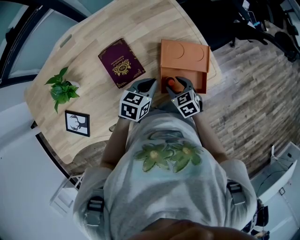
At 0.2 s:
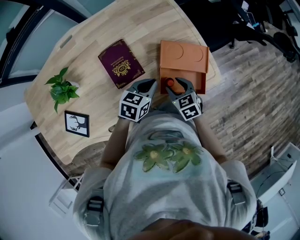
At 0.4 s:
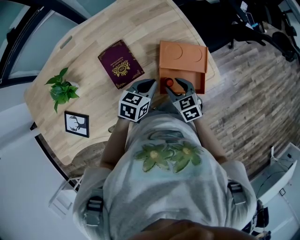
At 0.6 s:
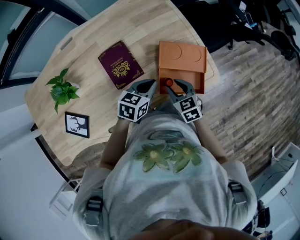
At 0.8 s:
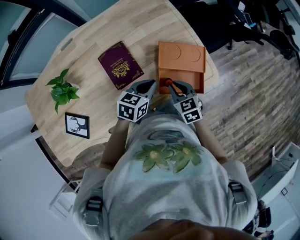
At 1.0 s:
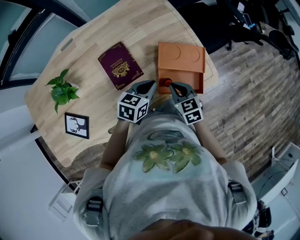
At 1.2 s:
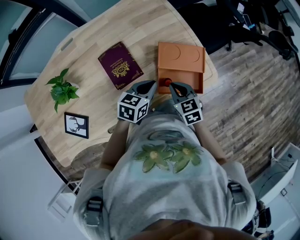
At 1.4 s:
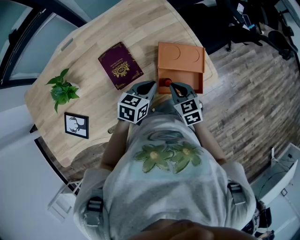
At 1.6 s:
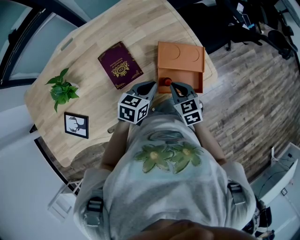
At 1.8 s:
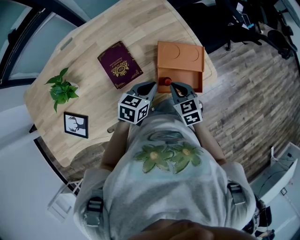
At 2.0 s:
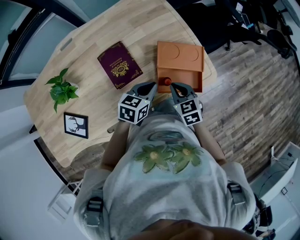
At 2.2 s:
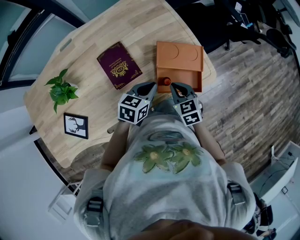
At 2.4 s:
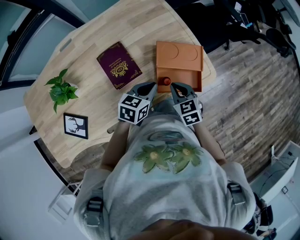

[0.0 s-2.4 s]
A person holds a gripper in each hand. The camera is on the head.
0.0 to 1.2 s: The right gripper is displaced upward by about 5 cm, and closes its fingers.
1.2 to 2.4 s: Neither gripper changes place.

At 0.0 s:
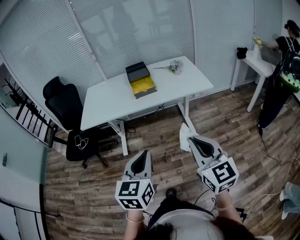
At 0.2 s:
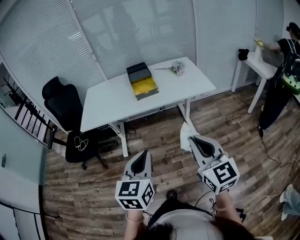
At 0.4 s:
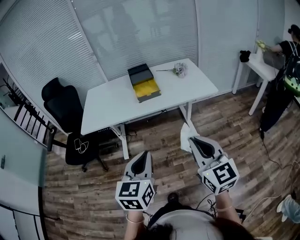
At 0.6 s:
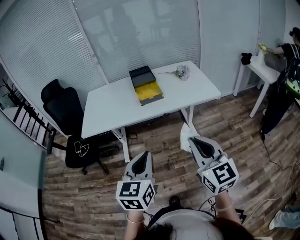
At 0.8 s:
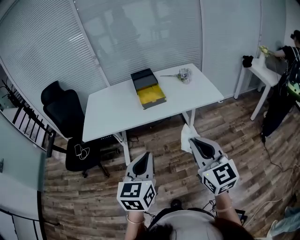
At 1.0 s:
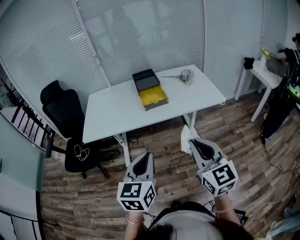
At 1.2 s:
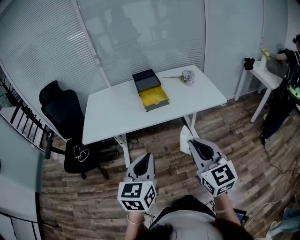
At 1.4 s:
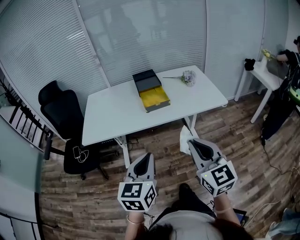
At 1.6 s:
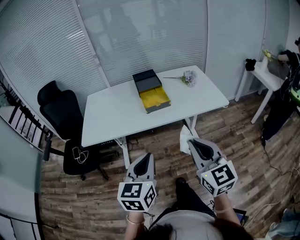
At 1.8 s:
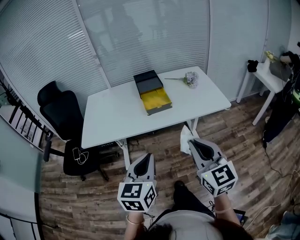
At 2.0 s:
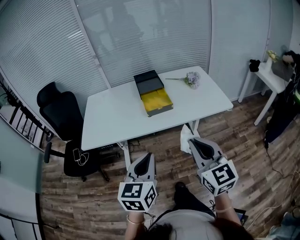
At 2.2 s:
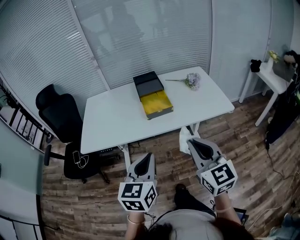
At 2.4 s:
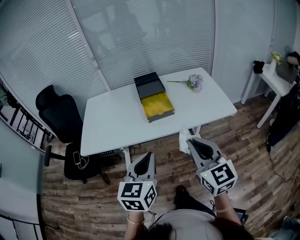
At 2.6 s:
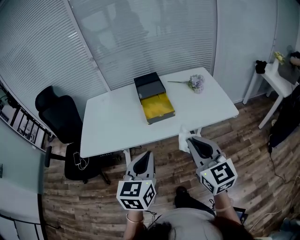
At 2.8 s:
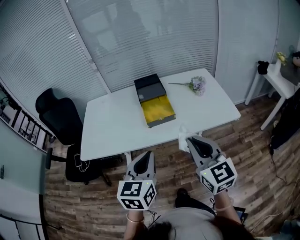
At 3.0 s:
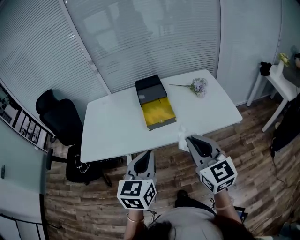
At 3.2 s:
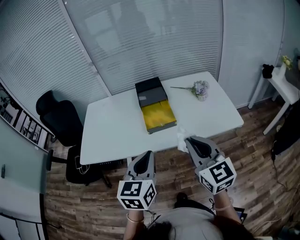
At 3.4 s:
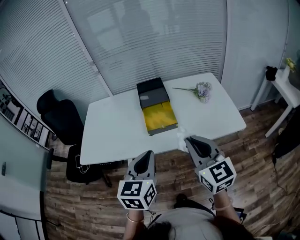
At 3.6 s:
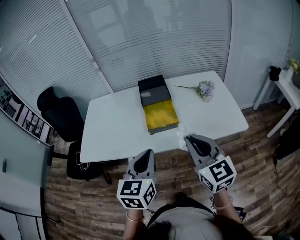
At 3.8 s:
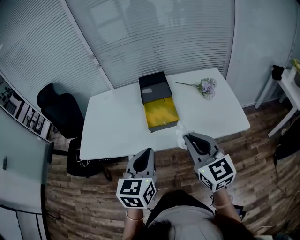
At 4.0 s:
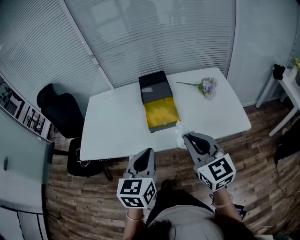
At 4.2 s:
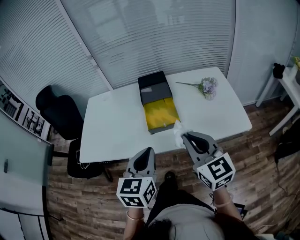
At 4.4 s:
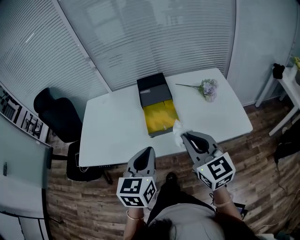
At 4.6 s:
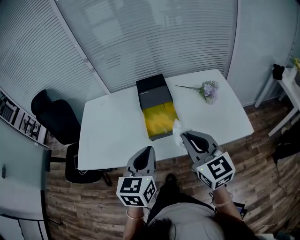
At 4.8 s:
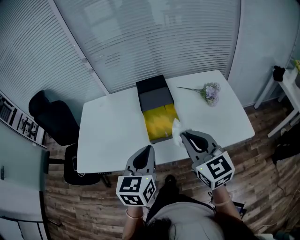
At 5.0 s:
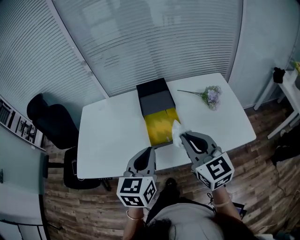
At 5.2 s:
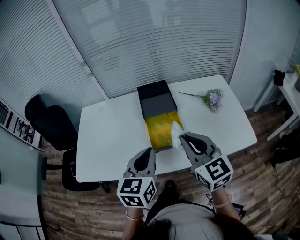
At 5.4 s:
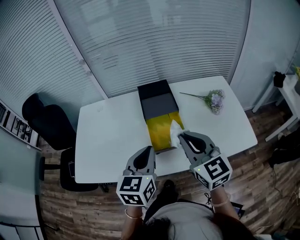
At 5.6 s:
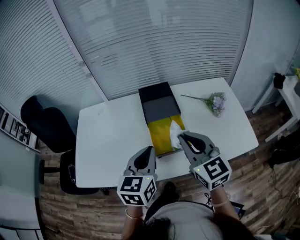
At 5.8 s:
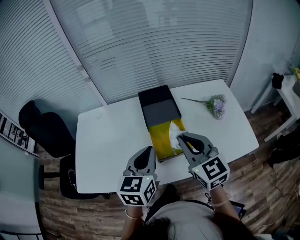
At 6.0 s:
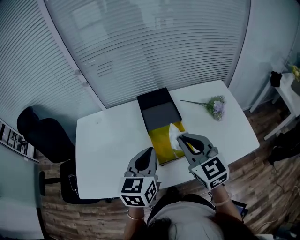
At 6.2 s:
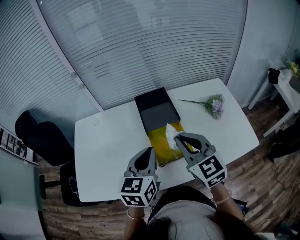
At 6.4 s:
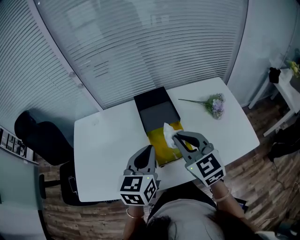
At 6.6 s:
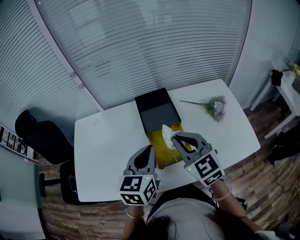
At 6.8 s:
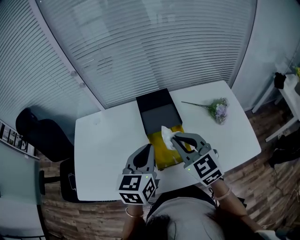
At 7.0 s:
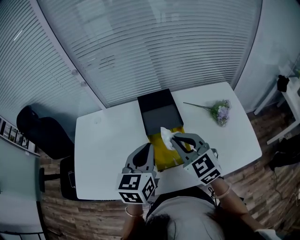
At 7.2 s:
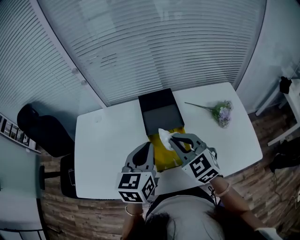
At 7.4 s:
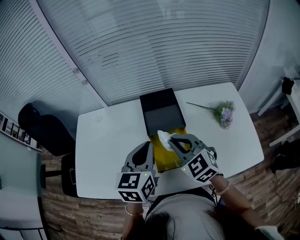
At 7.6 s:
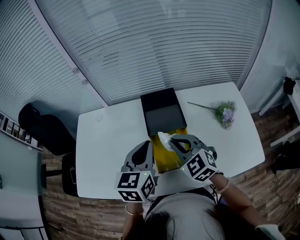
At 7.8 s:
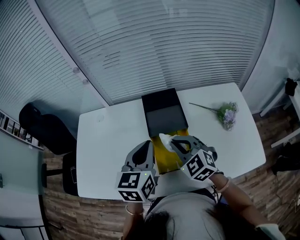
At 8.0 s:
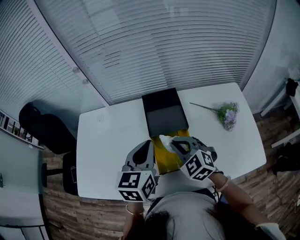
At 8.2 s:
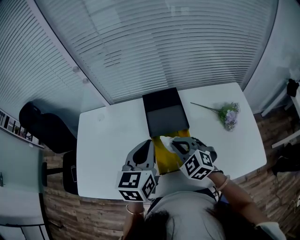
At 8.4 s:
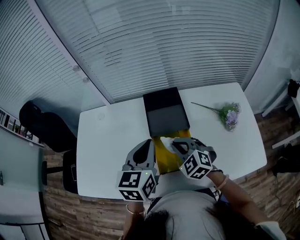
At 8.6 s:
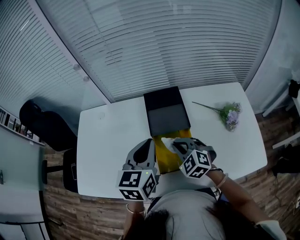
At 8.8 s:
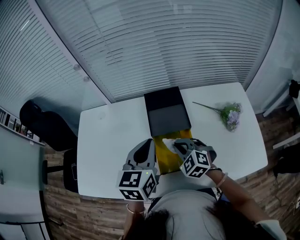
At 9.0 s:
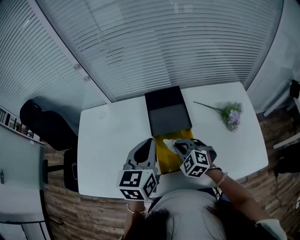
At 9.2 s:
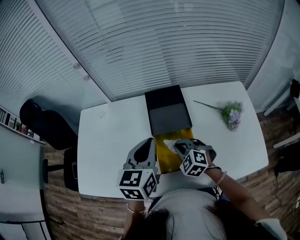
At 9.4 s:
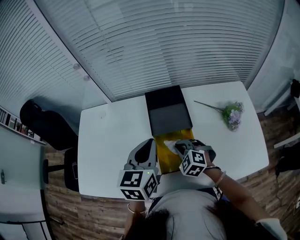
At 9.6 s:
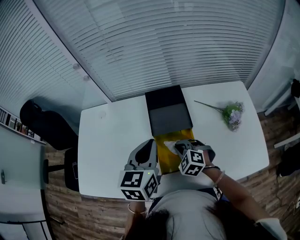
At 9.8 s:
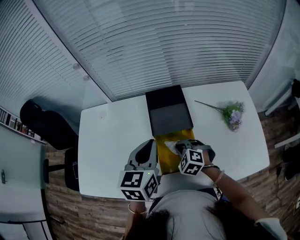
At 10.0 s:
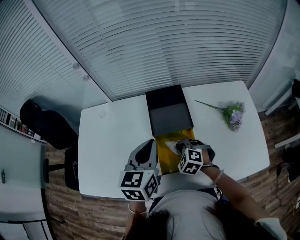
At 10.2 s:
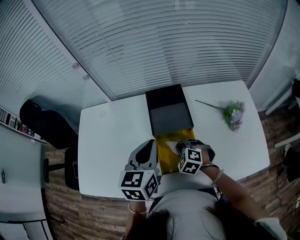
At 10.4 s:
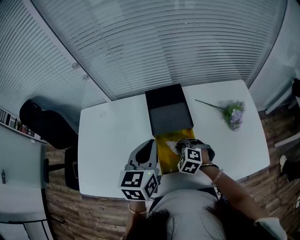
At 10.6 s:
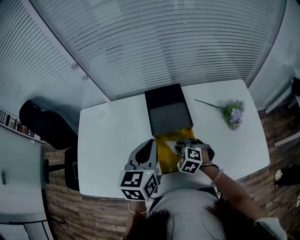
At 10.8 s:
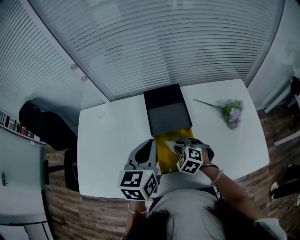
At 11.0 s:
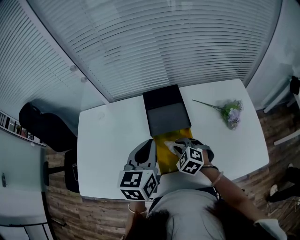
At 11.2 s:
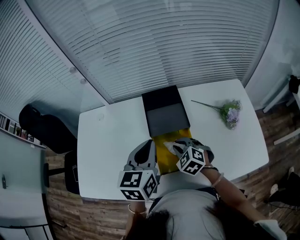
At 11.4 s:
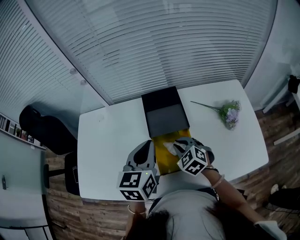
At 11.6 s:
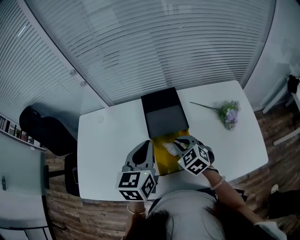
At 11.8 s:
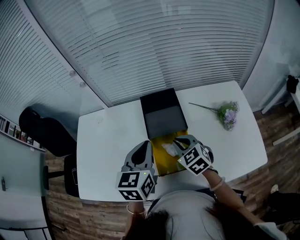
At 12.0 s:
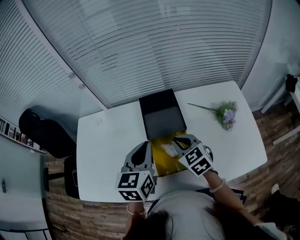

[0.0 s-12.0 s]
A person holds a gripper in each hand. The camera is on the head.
0.0 to 1.6 s: Both grippers move forward and to the left, some 20 cm.
1.6 to 3.0 s: Both grippers travel together forward, about 20 cm.
3.0 to 4.4 s: Both grippers travel together forward, approximately 10 cm.
4.4 to 6.0 s: Both grippers move forward, roughly 20 cm.
6.0 to 7.6 s: The left gripper is displaced forward by about 10 cm; the right gripper shifts roughly 10 cm downward and forward, and rotates about 30 degrees.
7.6 to 9.0 s: The right gripper is displaced downward by roughly 10 cm.
9.0 to 10.4 s: The right gripper goes roughly 5 cm downward.
10.4 to 12.0 s: The right gripper is displaced upward by about 15 cm, and swivels about 40 degrees.

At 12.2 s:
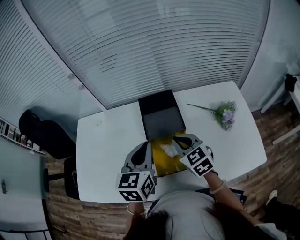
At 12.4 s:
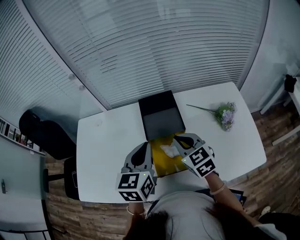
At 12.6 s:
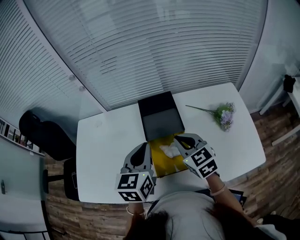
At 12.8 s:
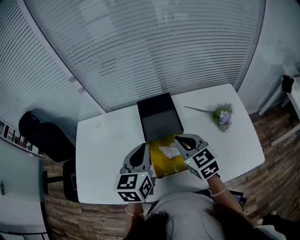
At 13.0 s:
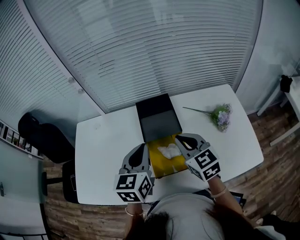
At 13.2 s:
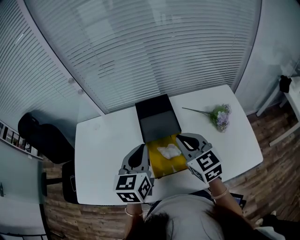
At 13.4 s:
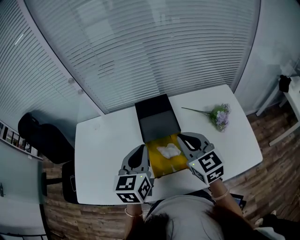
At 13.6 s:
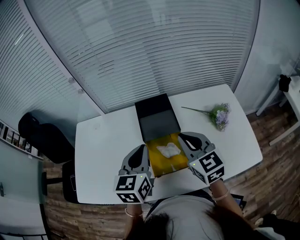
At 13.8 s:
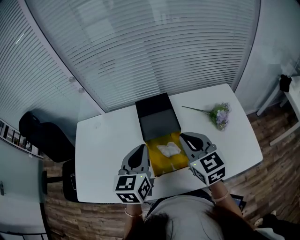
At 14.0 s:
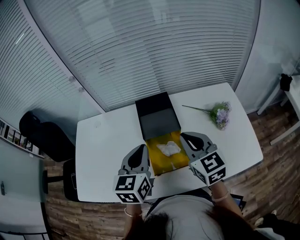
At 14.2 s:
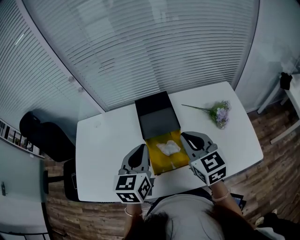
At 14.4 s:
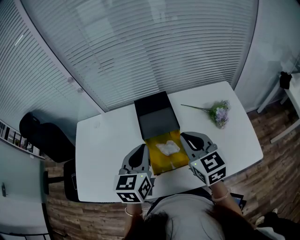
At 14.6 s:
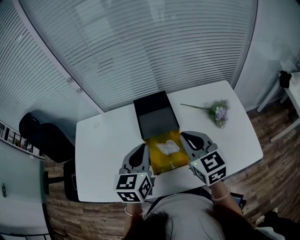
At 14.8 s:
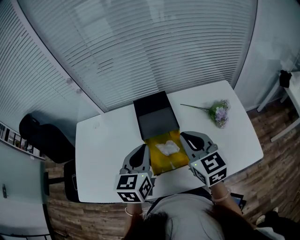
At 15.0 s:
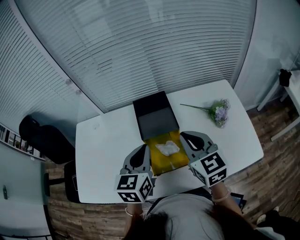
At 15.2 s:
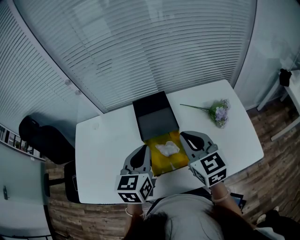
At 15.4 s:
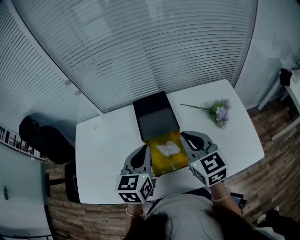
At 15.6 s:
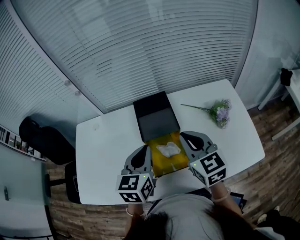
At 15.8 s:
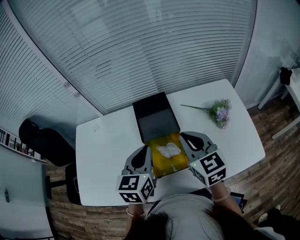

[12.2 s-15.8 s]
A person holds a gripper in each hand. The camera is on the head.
12.2 to 14.0 s: The right gripper travels upward by approximately 10 cm.
14.0 to 15.8 s: The grippers stay close to where they were, moving slightly.

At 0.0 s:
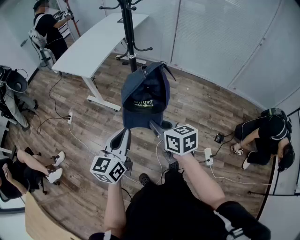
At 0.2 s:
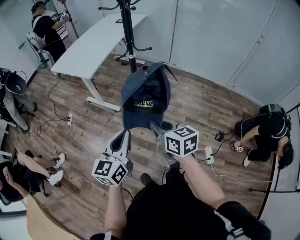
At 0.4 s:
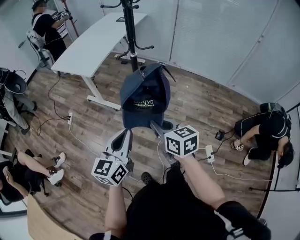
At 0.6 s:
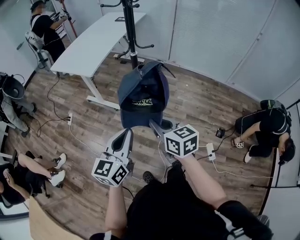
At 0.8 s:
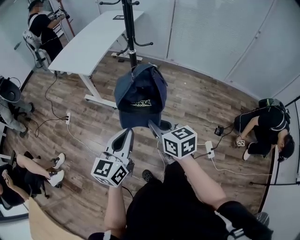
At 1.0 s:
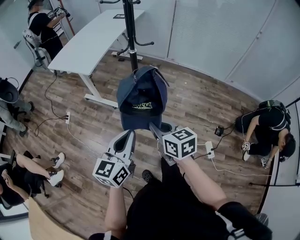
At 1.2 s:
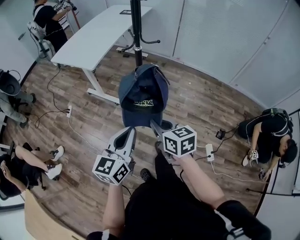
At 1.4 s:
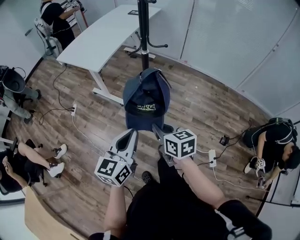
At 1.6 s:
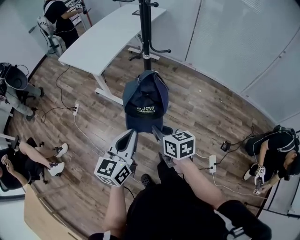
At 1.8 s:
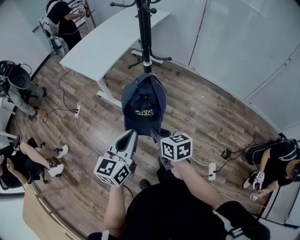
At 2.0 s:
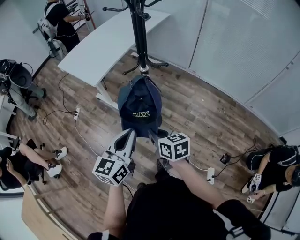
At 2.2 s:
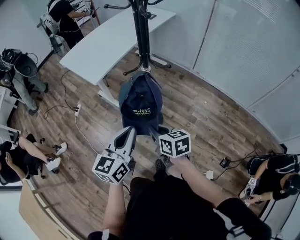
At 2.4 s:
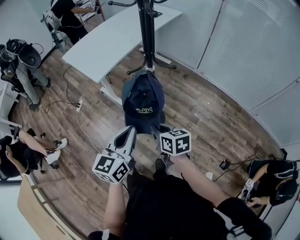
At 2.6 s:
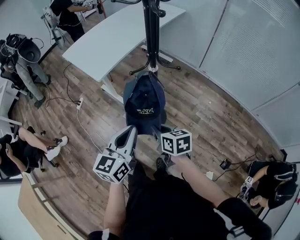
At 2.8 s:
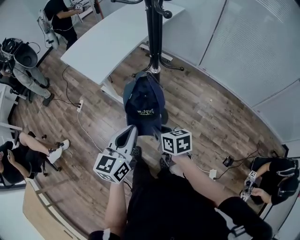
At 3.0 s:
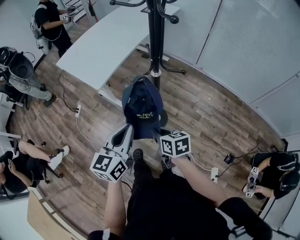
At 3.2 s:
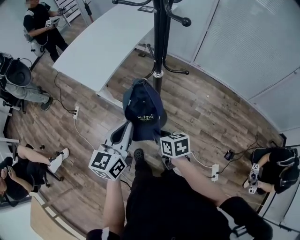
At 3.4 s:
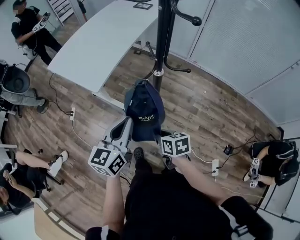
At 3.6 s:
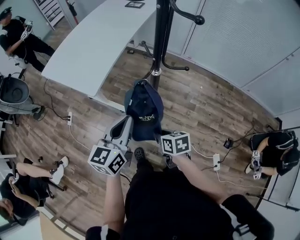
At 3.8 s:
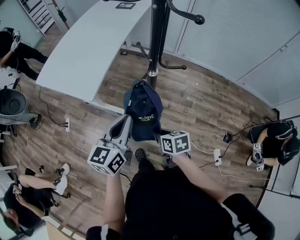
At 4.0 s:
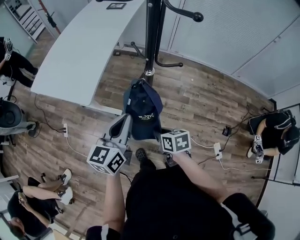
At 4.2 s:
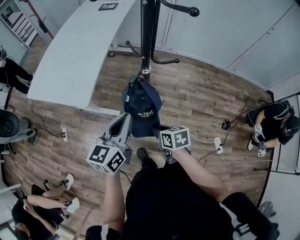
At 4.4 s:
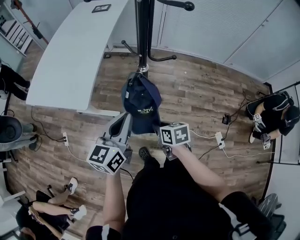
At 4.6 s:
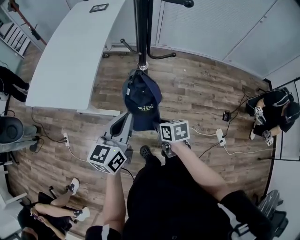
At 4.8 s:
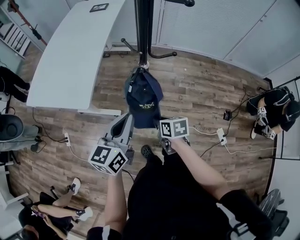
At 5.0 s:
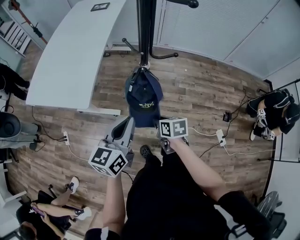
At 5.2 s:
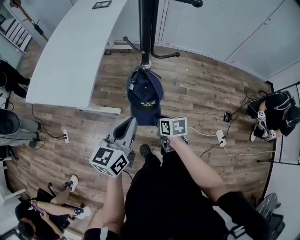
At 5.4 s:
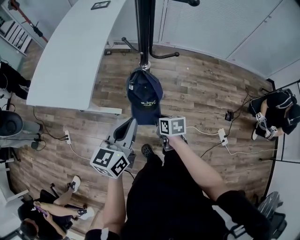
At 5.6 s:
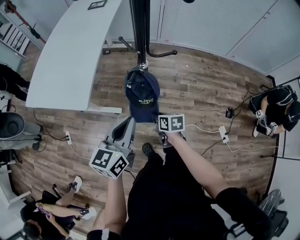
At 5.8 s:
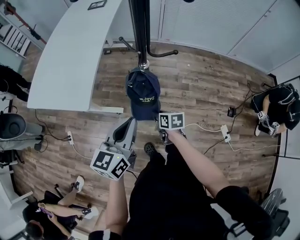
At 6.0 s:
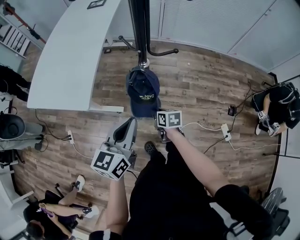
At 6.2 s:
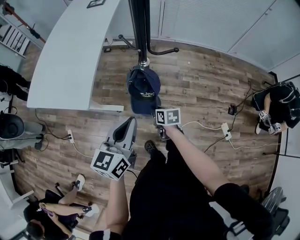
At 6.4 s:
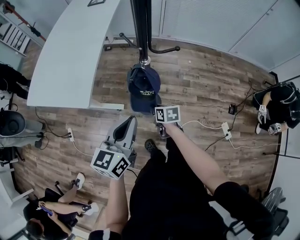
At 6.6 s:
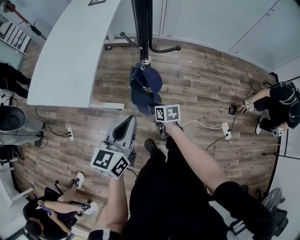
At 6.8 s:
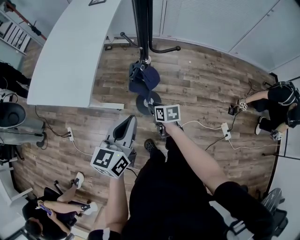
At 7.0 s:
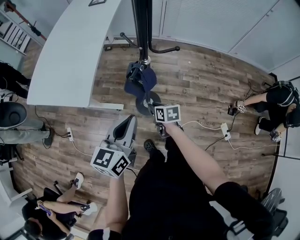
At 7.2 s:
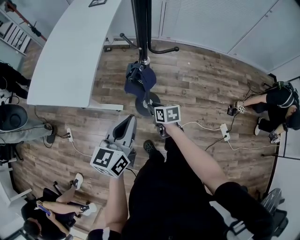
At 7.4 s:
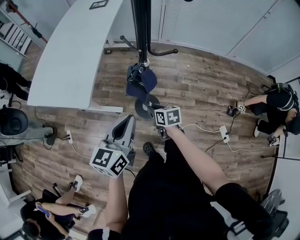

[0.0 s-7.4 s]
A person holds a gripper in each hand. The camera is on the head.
0.0 to 1.4 s: The right gripper ends up about 5 cm from where it was.
1.4 to 3.0 s: The left gripper is displaced forward by about 20 cm, while the right gripper heads forward and downward, covering roughly 20 cm.
3.0 to 4.4 s: The right gripper goes some 5 cm downward, and changes its angle by approximately 30 degrees; the left gripper heads forward, covering approximately 5 cm, and changes its angle by some 30 degrees.
4.4 to 6.0 s: The right gripper travels downward and forward by about 10 cm.
6.0 to 7.4 s: The grippers make only small movements.
